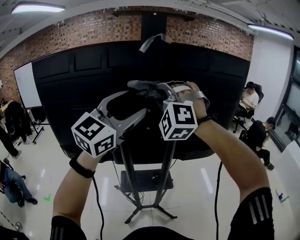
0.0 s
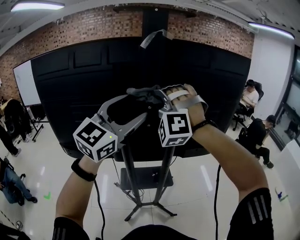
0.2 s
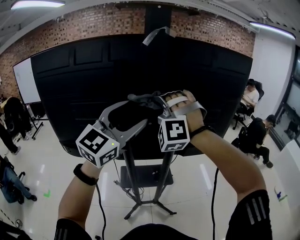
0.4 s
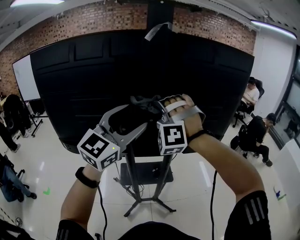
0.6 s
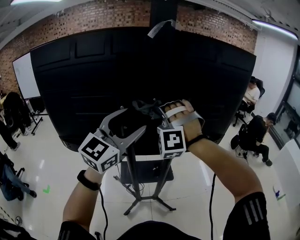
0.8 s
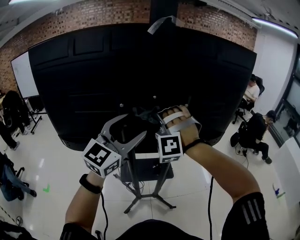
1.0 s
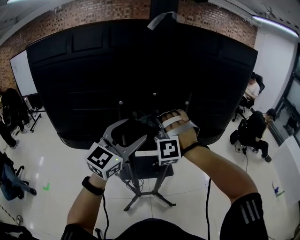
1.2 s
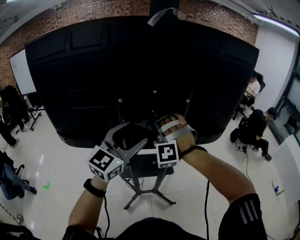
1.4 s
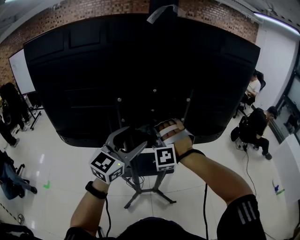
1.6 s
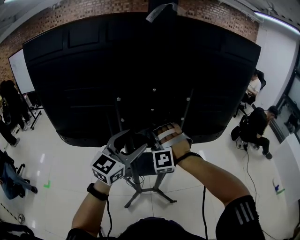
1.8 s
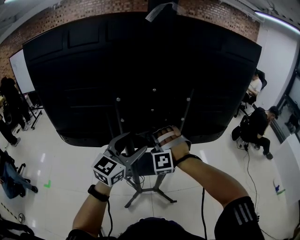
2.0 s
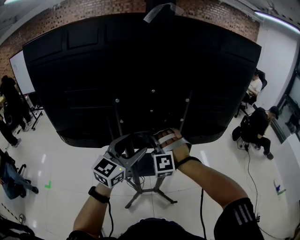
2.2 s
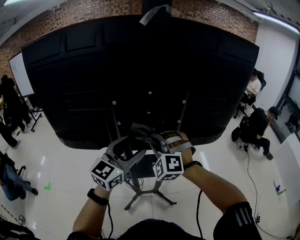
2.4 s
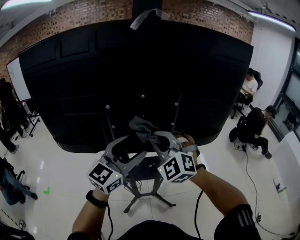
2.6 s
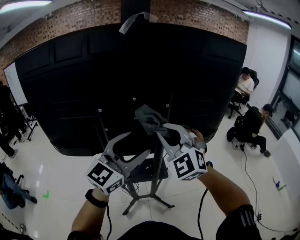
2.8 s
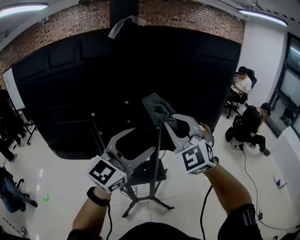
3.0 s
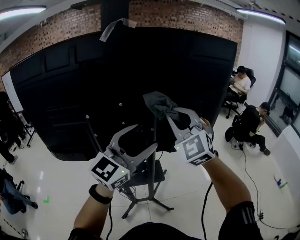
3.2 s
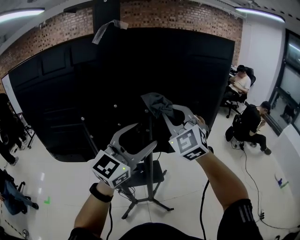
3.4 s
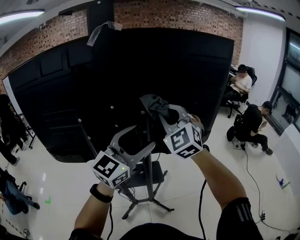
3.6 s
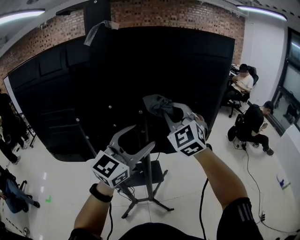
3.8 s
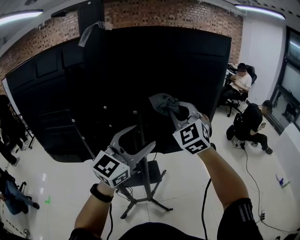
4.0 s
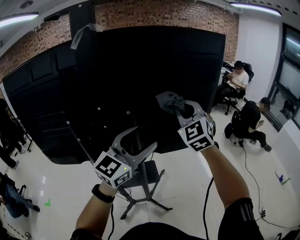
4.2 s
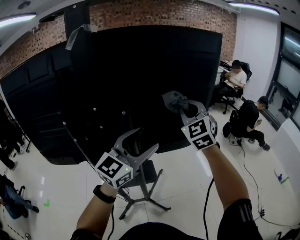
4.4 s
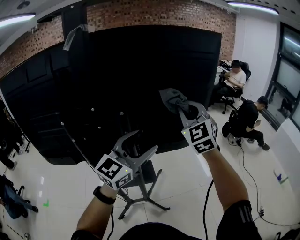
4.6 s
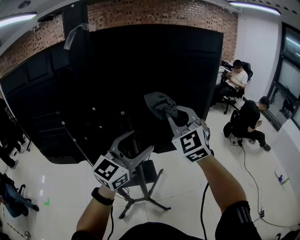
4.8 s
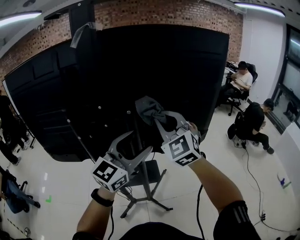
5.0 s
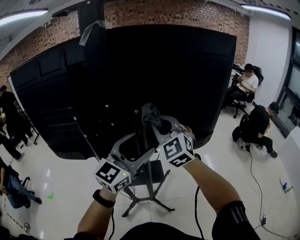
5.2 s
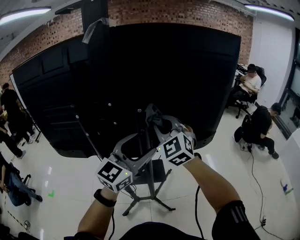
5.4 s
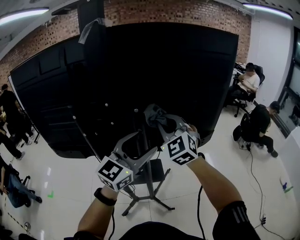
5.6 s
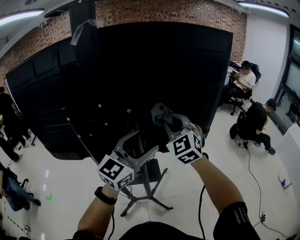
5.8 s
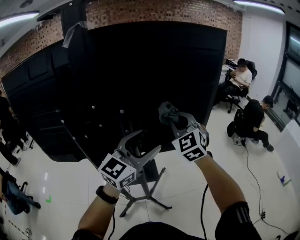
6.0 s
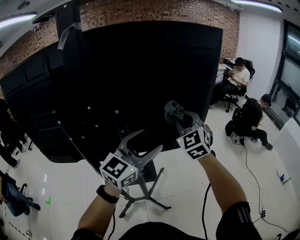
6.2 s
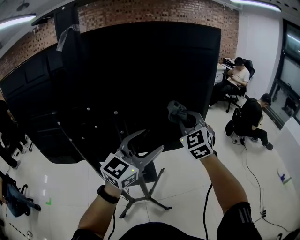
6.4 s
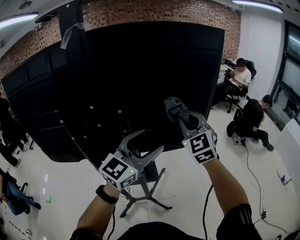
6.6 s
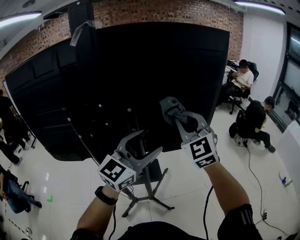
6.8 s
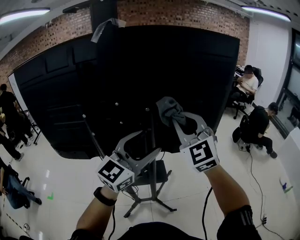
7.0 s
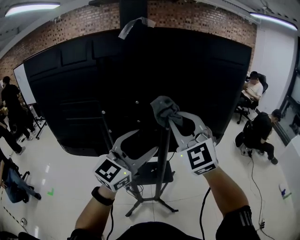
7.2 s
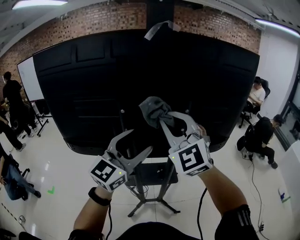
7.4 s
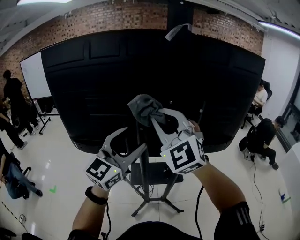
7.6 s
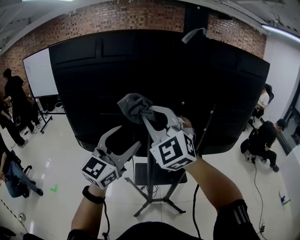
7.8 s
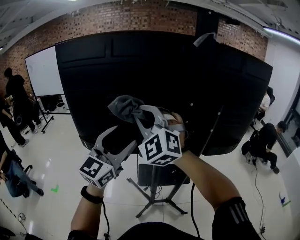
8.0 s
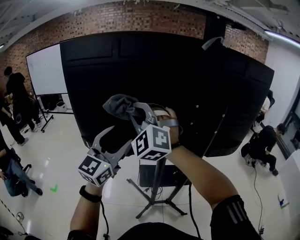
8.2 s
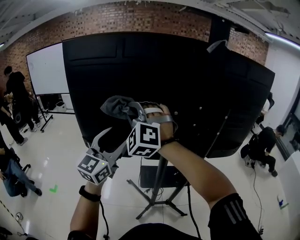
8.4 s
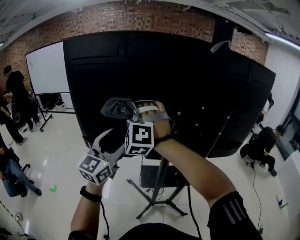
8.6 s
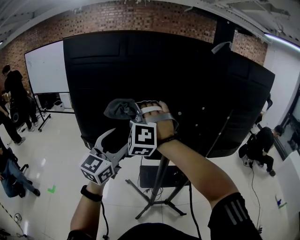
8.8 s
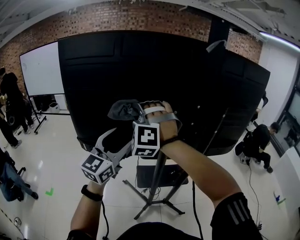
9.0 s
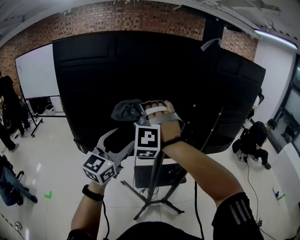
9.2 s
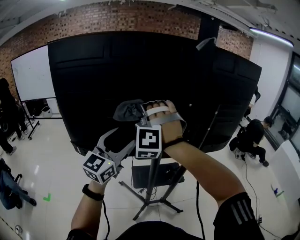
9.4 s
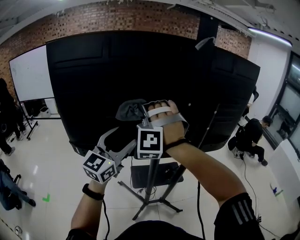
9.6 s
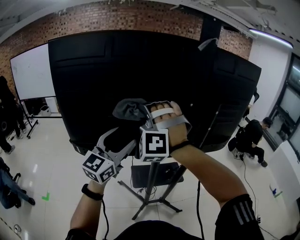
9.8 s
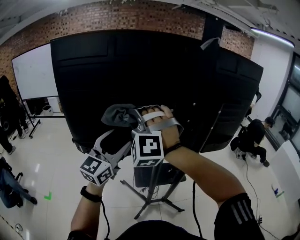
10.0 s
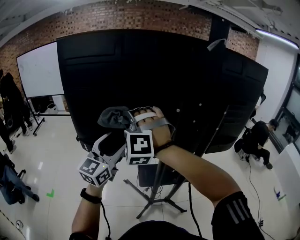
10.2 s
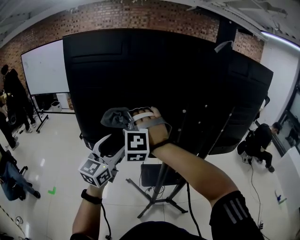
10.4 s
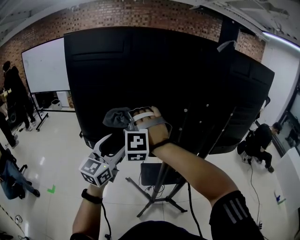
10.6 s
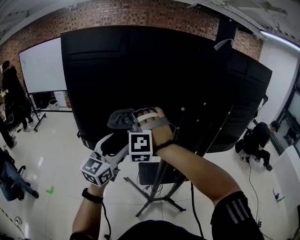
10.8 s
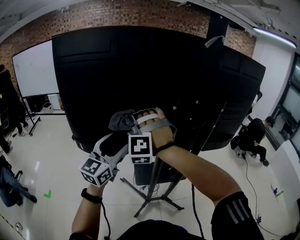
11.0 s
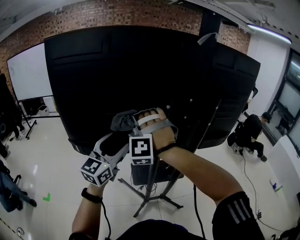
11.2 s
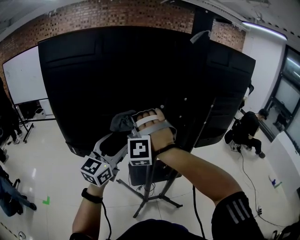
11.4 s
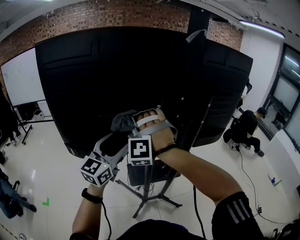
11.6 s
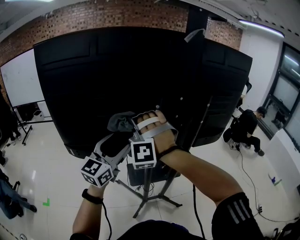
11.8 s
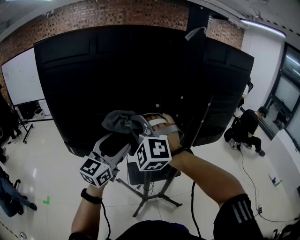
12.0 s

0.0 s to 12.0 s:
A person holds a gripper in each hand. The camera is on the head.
0.0 to 1.6 s: The grippers both shift downward by approximately 25 cm.
1.6 to 3.0 s: The left gripper heads to the right and upward, covering some 15 cm, while the right gripper travels upward and to the right by some 20 cm, and twists some 50 degrees clockwise, seen from behind.
3.0 to 4.4 s: The left gripper is displaced to the right and forward by approximately 15 cm. Meanwhile the right gripper heads to the right and forward, covering approximately 20 cm.
4.4 to 6.0 s: The right gripper travels downward by roughly 5 cm, and moves about 15 cm to the left and comes back.
6.0 to 7.6 s: The two grippers go about 35 cm to the left and backward. The right gripper changes its angle by some 20 degrees.
7.6 to 9.0 s: Both grippers move to the left, about 20 cm. The right gripper rolls counterclockwise, seen from behind, by some 40 degrees.
9.0 to 10.4 s: Both grippers travel together to the left, about 5 cm.
10.4 to 12.0 s: Both grippers move to the right, about 10 cm.

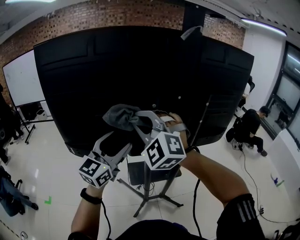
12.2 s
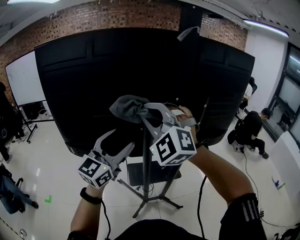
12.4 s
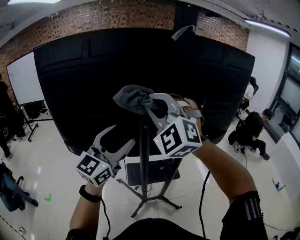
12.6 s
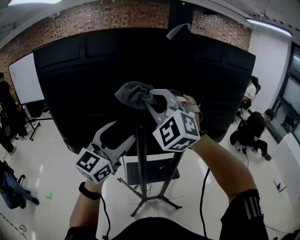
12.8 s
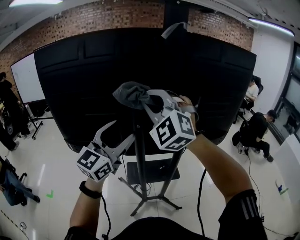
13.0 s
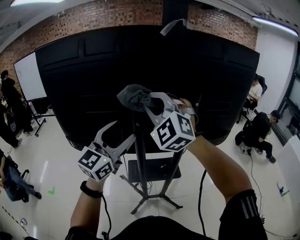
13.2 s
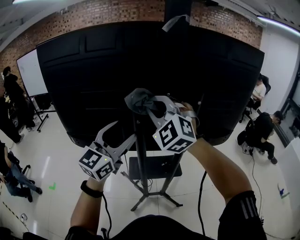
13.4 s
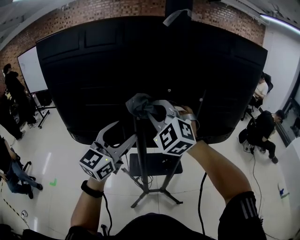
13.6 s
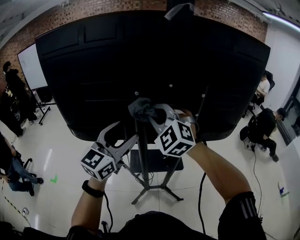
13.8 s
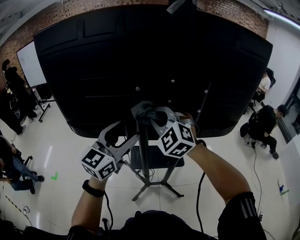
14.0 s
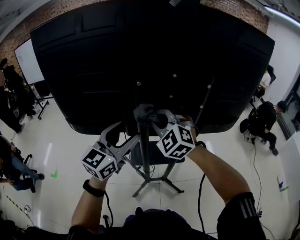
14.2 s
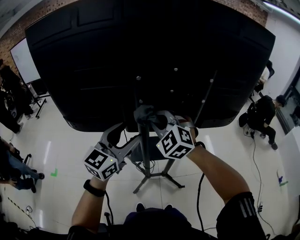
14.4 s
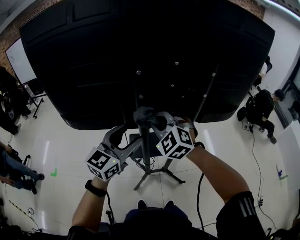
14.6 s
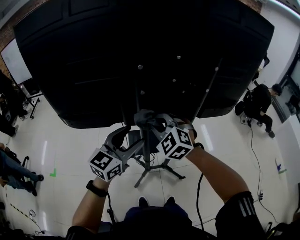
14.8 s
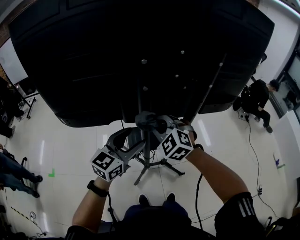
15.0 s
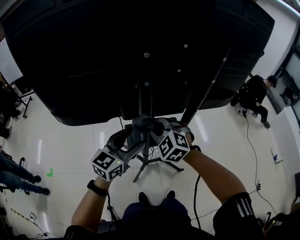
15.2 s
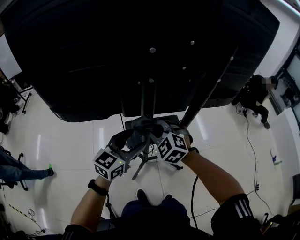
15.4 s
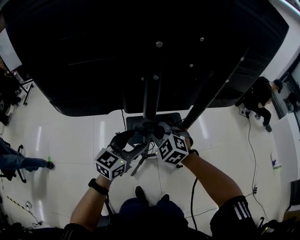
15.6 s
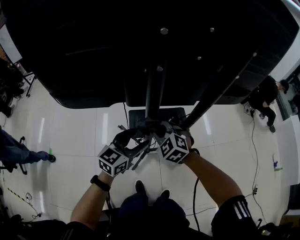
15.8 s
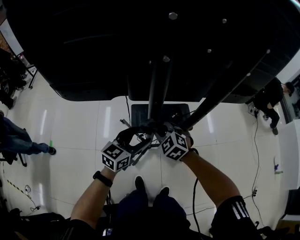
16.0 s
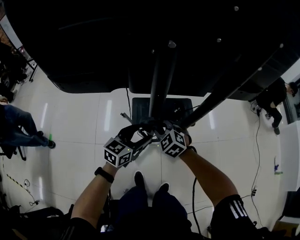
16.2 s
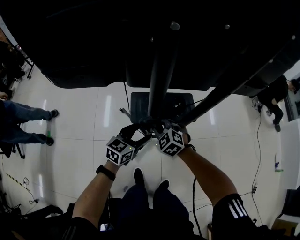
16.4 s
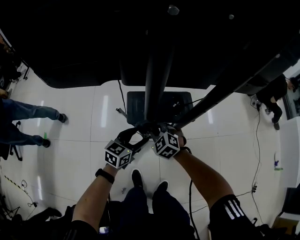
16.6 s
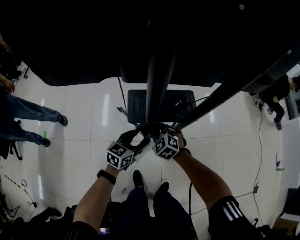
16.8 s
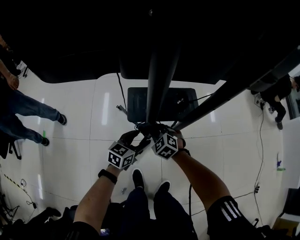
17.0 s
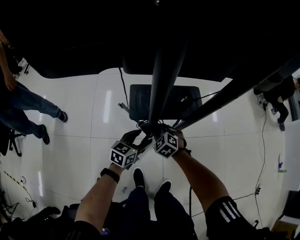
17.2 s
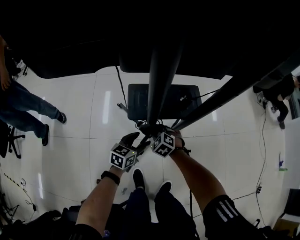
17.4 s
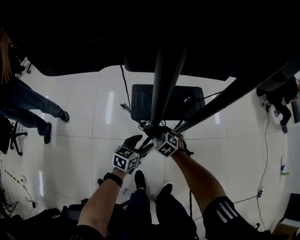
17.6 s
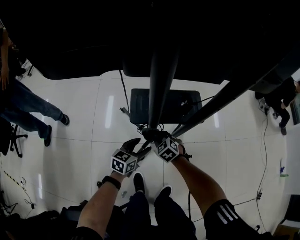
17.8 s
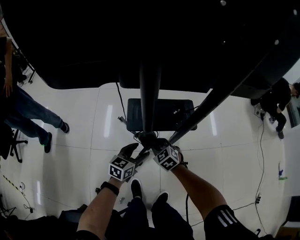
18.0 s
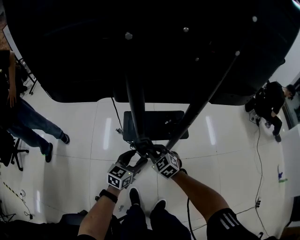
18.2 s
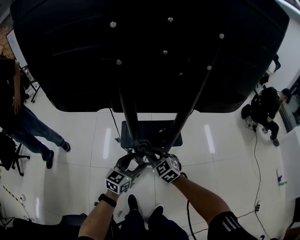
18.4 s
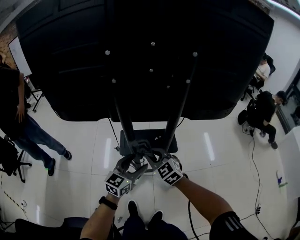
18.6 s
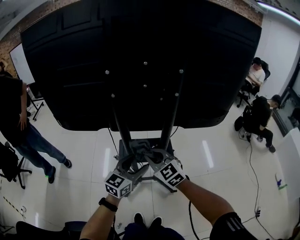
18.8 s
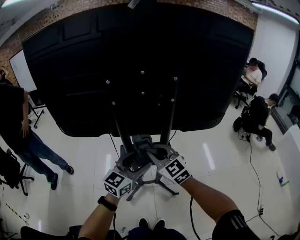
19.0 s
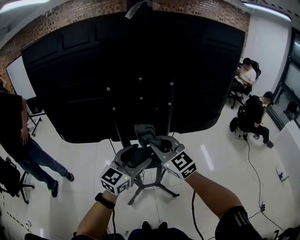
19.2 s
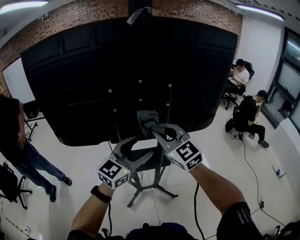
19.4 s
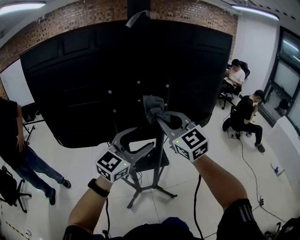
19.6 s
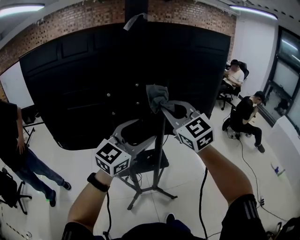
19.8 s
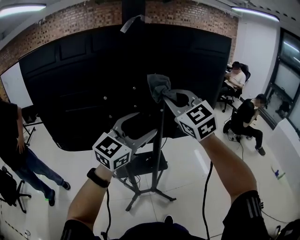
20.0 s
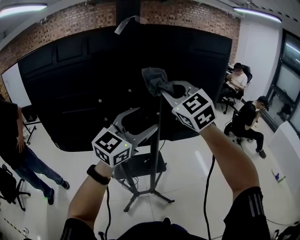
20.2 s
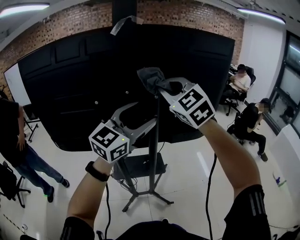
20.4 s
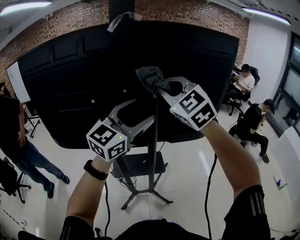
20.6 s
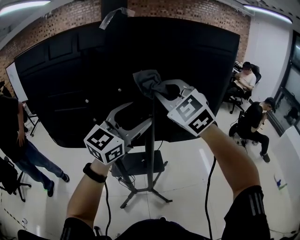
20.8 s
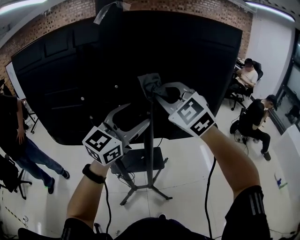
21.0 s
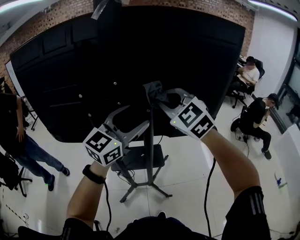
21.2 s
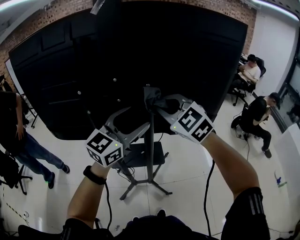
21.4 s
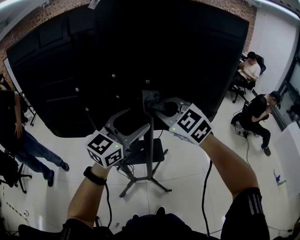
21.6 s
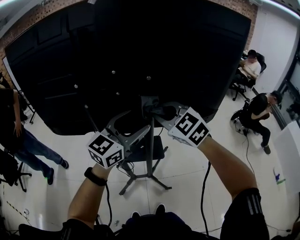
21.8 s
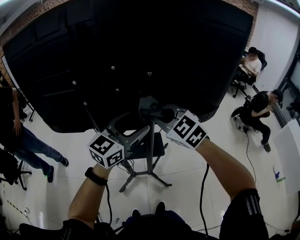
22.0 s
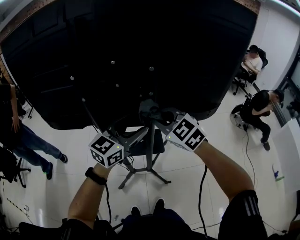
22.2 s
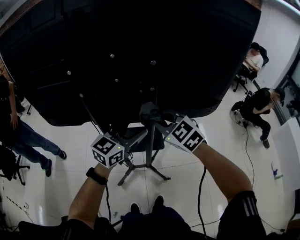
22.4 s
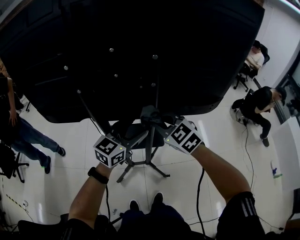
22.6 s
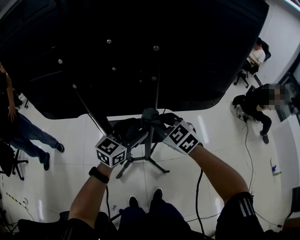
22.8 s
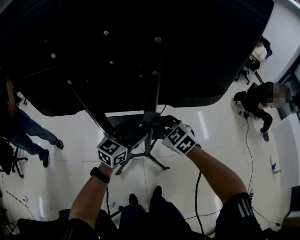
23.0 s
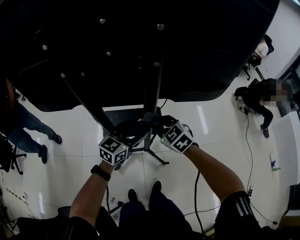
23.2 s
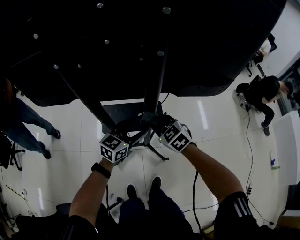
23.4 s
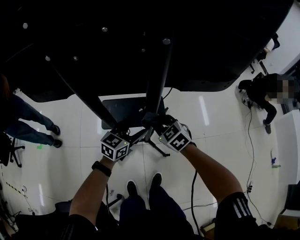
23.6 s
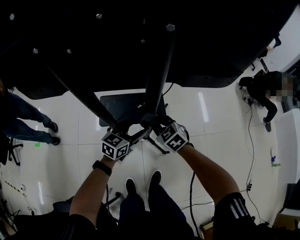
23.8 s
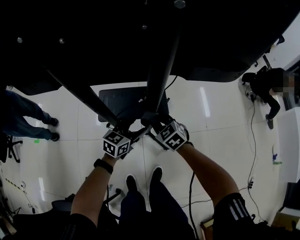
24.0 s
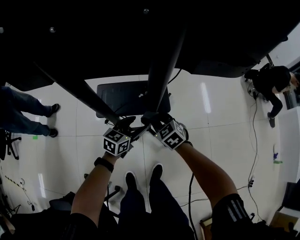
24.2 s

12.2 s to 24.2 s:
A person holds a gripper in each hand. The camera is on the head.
12.2 to 13.8 s: The left gripper moves to the right, some 10 cm. The right gripper travels to the right and downward by roughly 10 cm.
13.8 to 15.2 s: The grippers both shift downward by approximately 20 cm. The right gripper swivels approximately 20 degrees. Meanwhile the left gripper rotates approximately 20 degrees.
15.2 to 16.6 s: Both grippers move downward, roughly 30 cm. The left gripper turns by some 20 degrees.
16.6 to 18.2 s: The left gripper reaches about 15 cm downward, then returns. The right gripper moves approximately 20 cm downward and comes back.
18.2 to 19.8 s: Both grippers travel together upward, some 60 cm. The right gripper angles its fingers upward, by some 40 degrees; the left gripper swivels approximately 40 degrees.
19.8 to 21.2 s: The two grippers go some 10 cm forward. The right gripper turns by roughly 20 degrees.
21.2 to 22.6 s: The two grippers go about 20 cm downward. The right gripper swivels some 20 degrees.
22.6 to 24.2 s: The grippers both shift downward by approximately 35 cm. The right gripper changes its angle by about 20 degrees; the left gripper turns by about 30 degrees.
